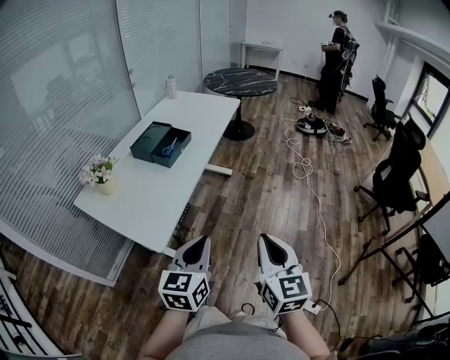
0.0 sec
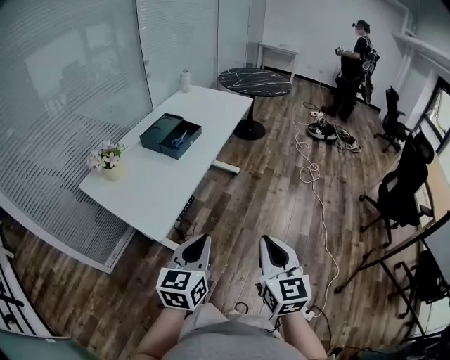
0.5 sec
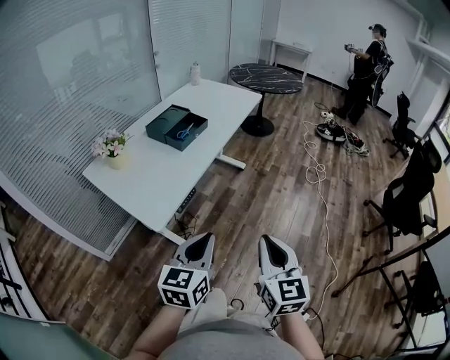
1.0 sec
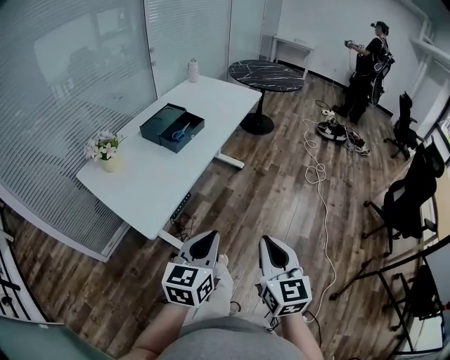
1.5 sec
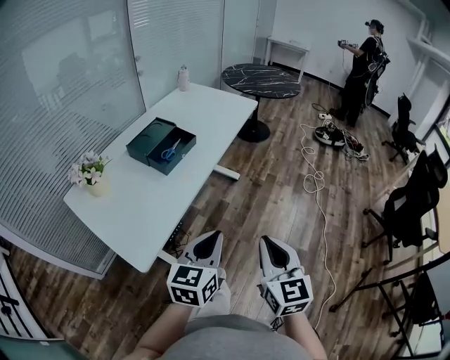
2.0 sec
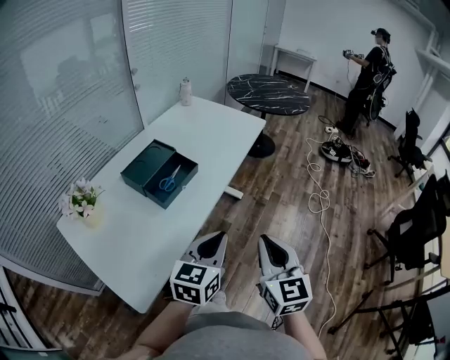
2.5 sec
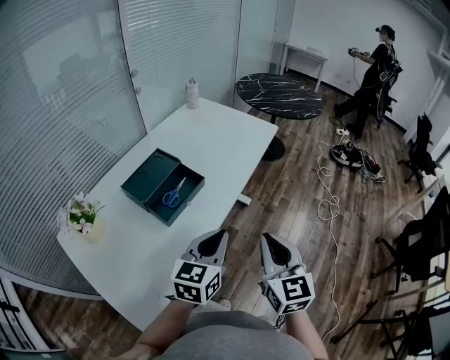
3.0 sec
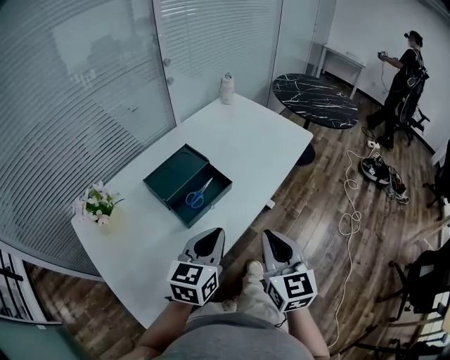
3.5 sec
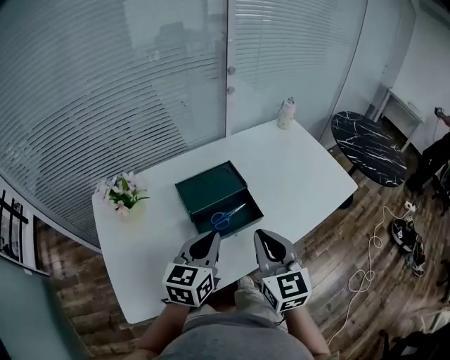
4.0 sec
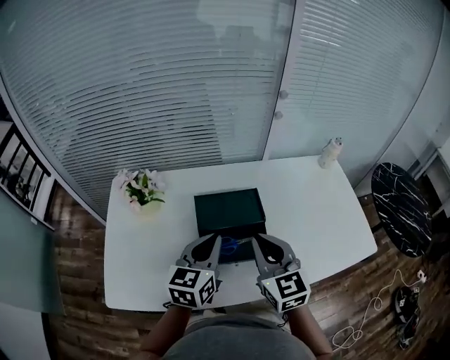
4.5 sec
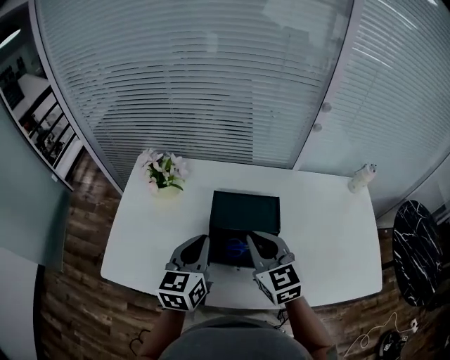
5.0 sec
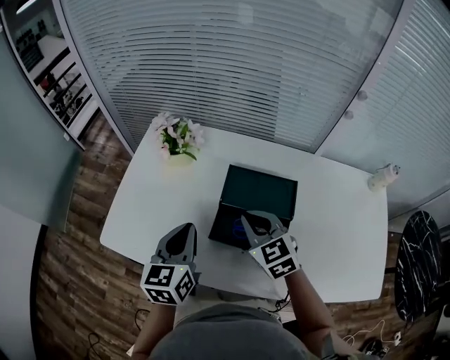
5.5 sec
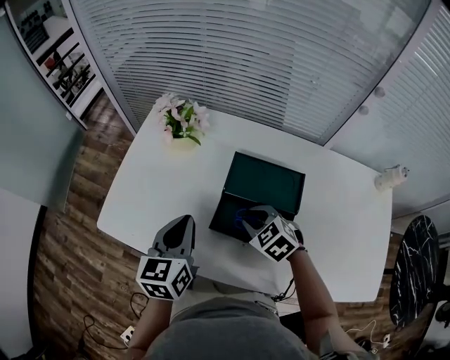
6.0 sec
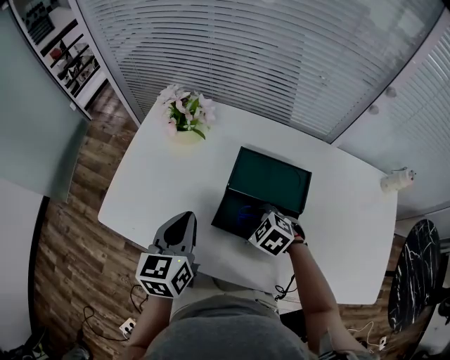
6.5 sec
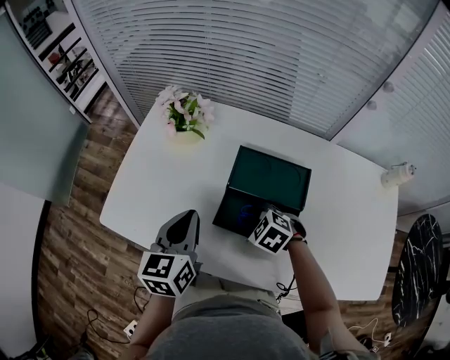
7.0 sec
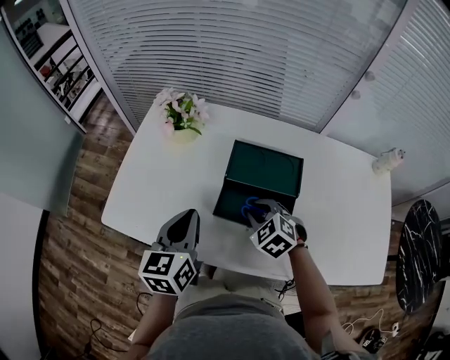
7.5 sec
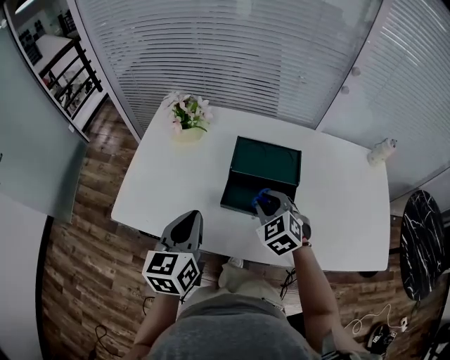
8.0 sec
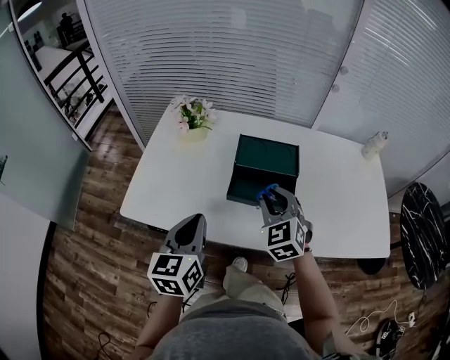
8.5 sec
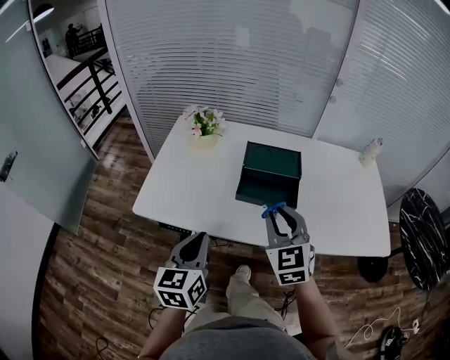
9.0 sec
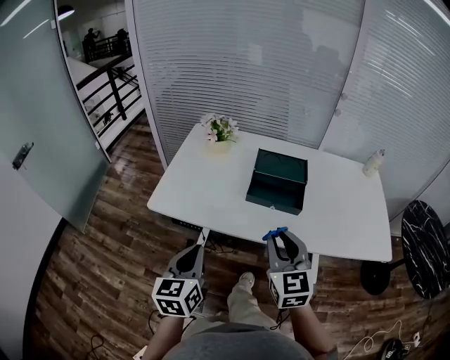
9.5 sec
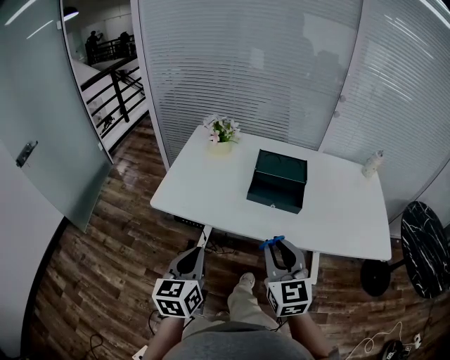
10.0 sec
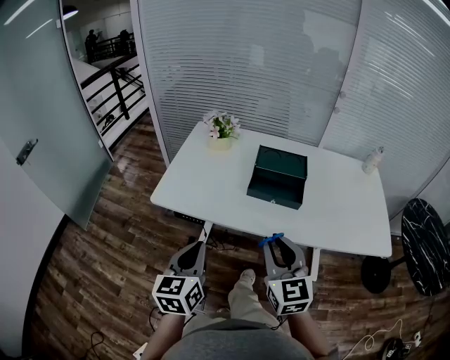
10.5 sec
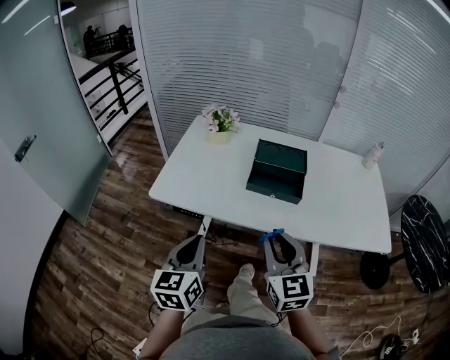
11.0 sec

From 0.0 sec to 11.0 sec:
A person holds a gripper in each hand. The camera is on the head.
From 0.0 sec to 2.0 sec: The right gripper heads forward, covering approximately 15 cm; the left gripper goes about 15 cm forward and to the right.
From 2.0 sec to 3.5 sec: Both grippers travel together forward, some 35 cm.
From 3.5 sec to 5.5 sec: The right gripper changes place by roughly 35 cm, and rotates roughly 80 degrees, while the left gripper changes place by some 15 cm, and swivels roughly 70 degrees.
From 5.5 sec to 7.5 sec: The right gripper heads downward, covering some 10 cm, and swivels some 30 degrees.
From 7.5 sec to 9.0 sec: The left gripper goes roughly 20 cm backward, while the right gripper travels upward and backward by approximately 25 cm, and tips its fingers upward by roughly 40 degrees.
From 9.0 sec to 11.0 sec: The grippers both shift backward by approximately 15 cm.

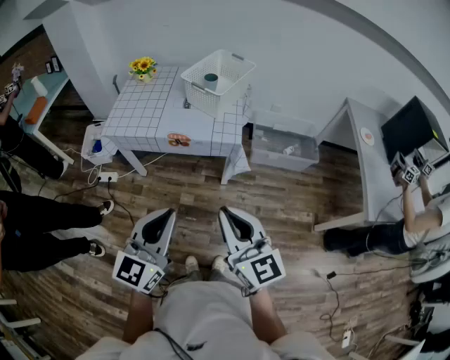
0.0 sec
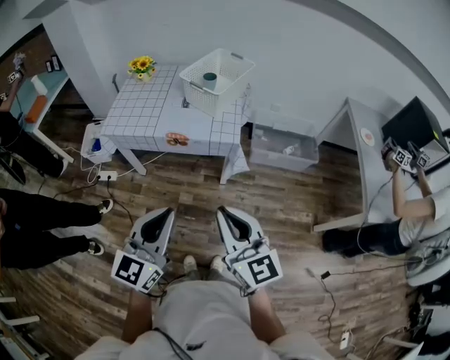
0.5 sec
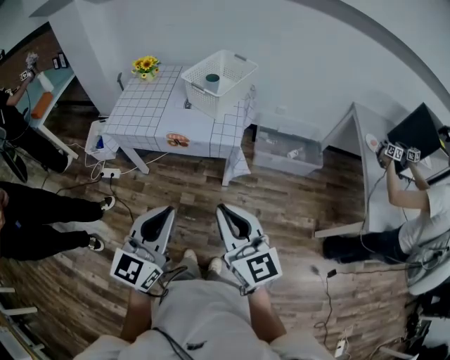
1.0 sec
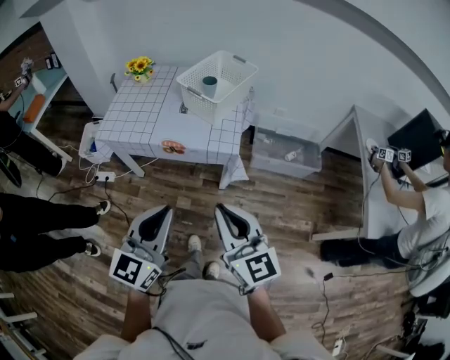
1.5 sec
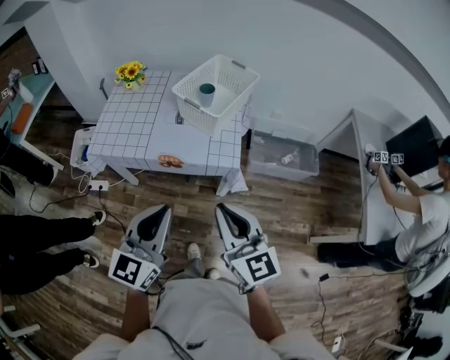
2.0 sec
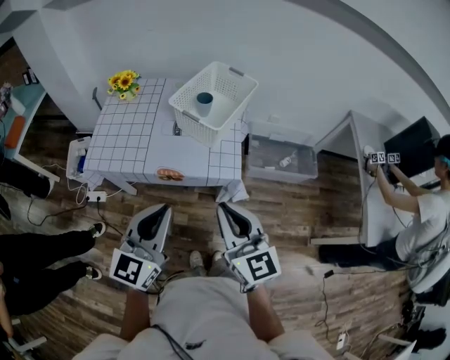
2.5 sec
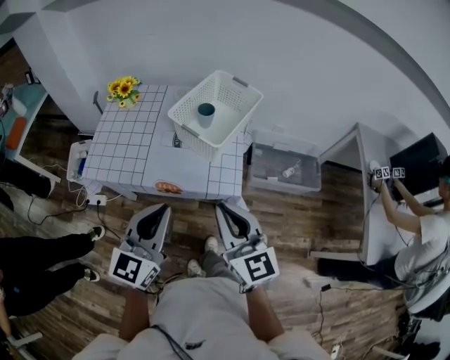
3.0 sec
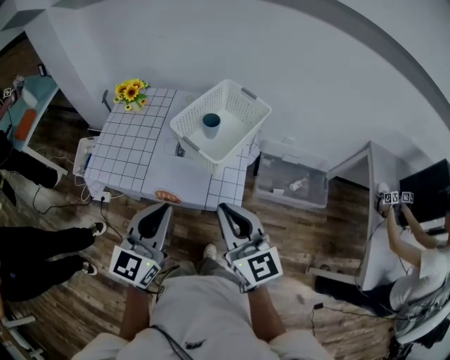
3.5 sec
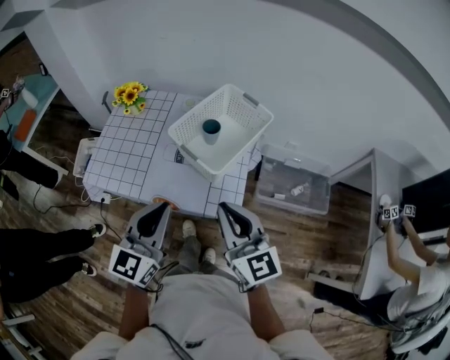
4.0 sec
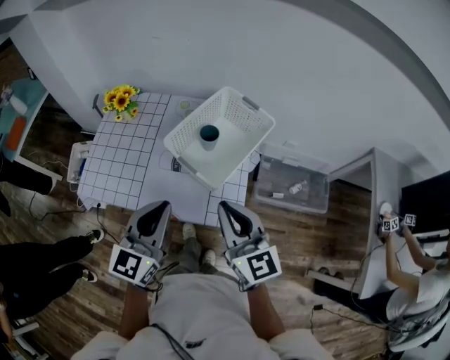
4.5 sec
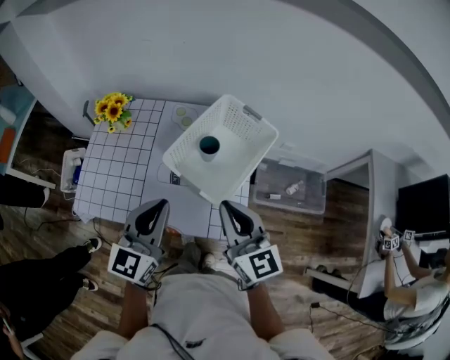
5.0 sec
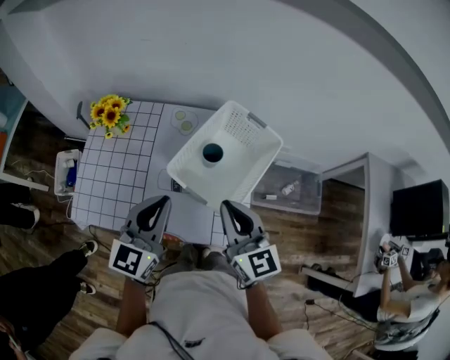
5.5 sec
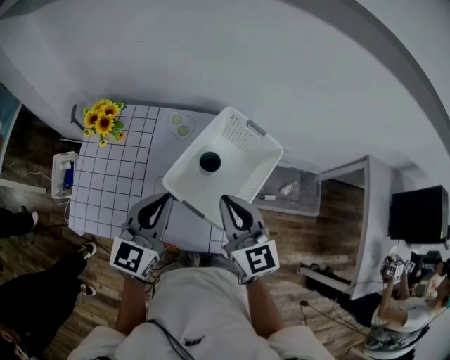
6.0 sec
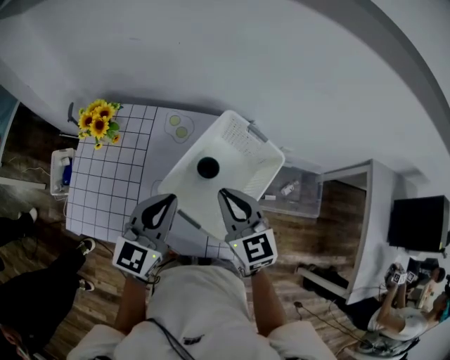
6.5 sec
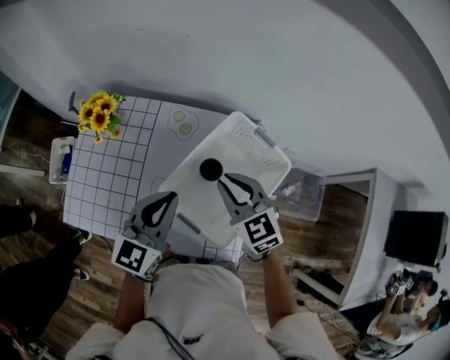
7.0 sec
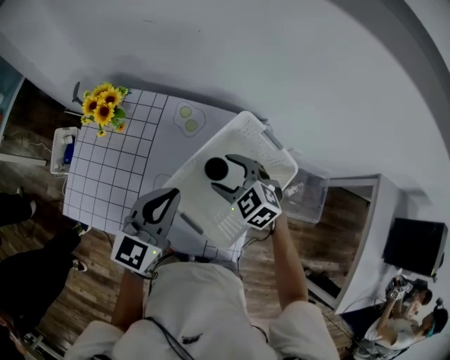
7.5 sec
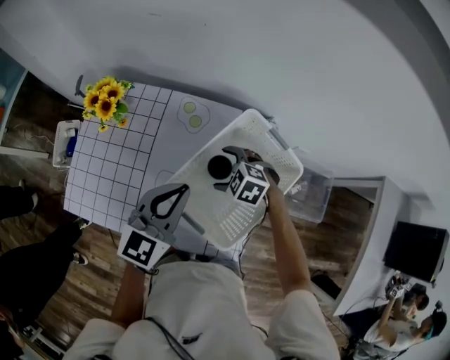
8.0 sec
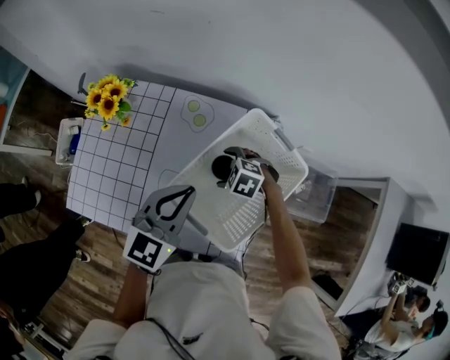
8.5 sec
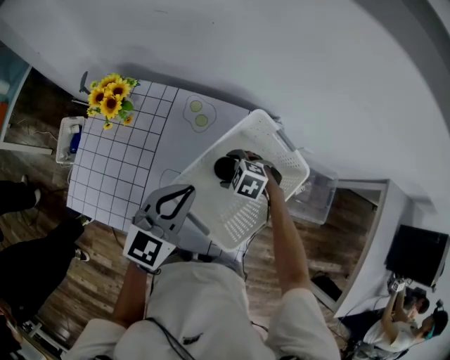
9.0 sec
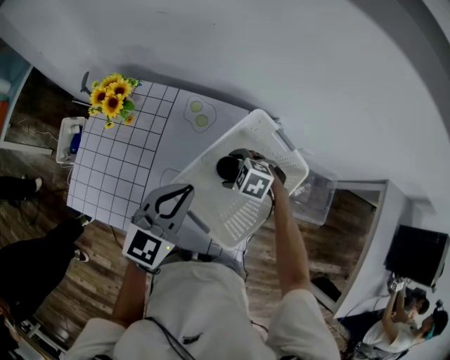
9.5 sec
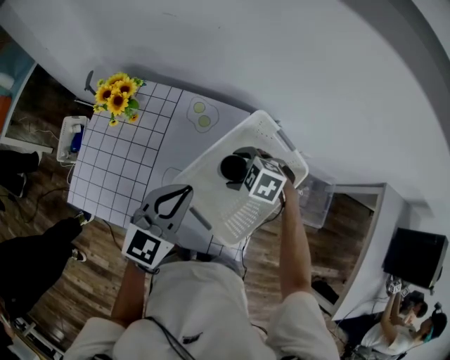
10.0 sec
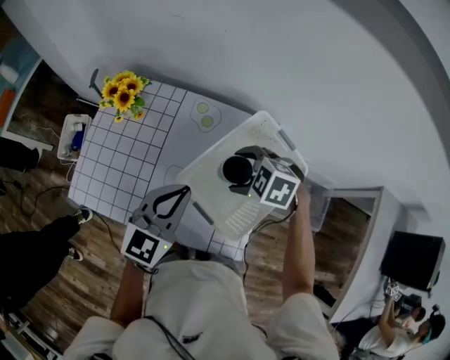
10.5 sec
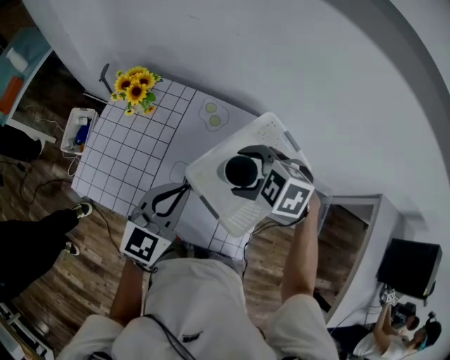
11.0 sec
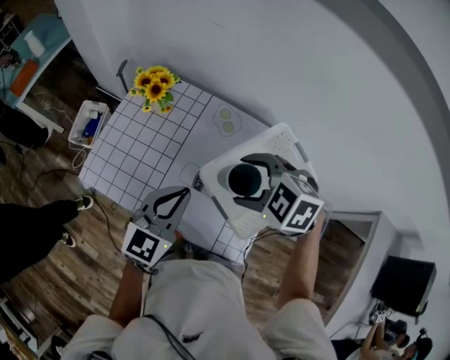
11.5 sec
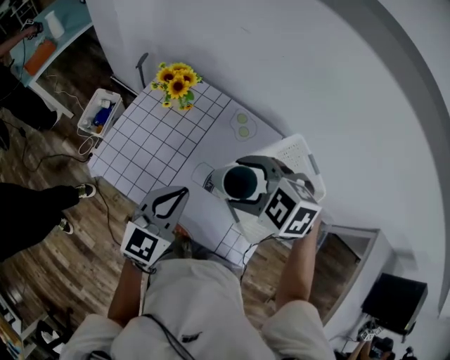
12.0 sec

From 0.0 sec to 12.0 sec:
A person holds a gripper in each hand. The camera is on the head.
From 0.0 sec to 2.0 sec: Both grippers travel together forward, approximately 20 cm.
From 2.0 sec to 4.0 sec: Both grippers travel together forward, about 25 cm.
From 4.0 sec to 6.0 sec: Both grippers move forward, about 25 cm.
From 6.0 sec to 8.0 sec: The left gripper moves forward, roughly 10 cm; the right gripper goes roughly 25 cm downward and forward, points its fingers about 60 degrees further downward, and opens its fingers.
From 8.0 sec to 10.0 sec: The grippers move only a little.
From 10.0 sec to 12.0 sec: The right gripper heads upward and to the left, covering about 25 cm, and changes its angle by some 30 degrees; the left gripper is displaced to the left by about 15 cm.

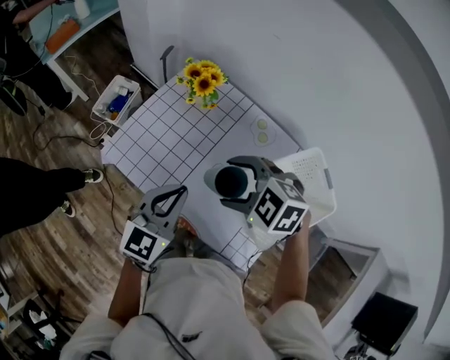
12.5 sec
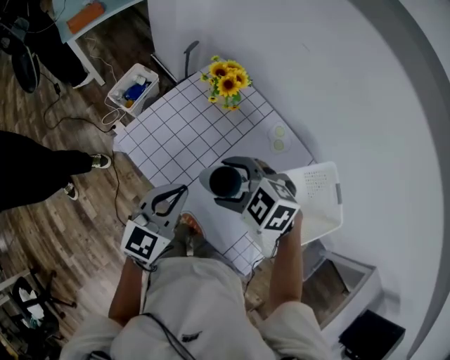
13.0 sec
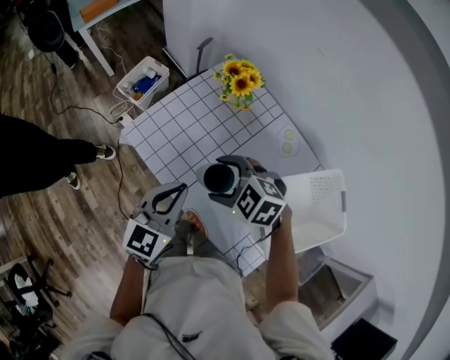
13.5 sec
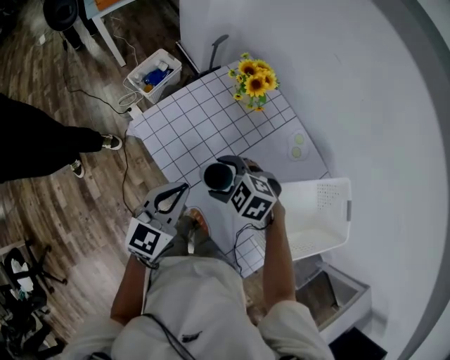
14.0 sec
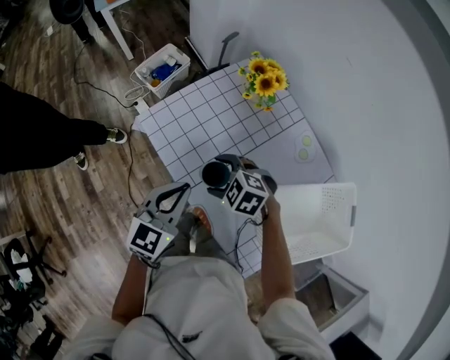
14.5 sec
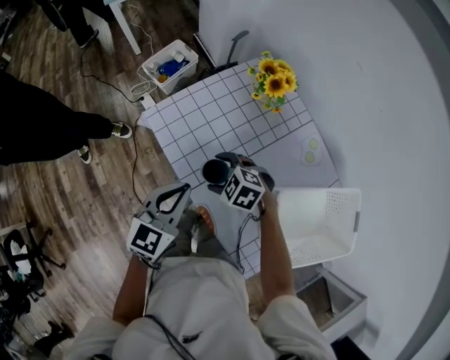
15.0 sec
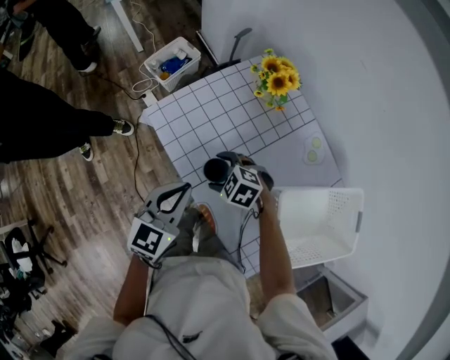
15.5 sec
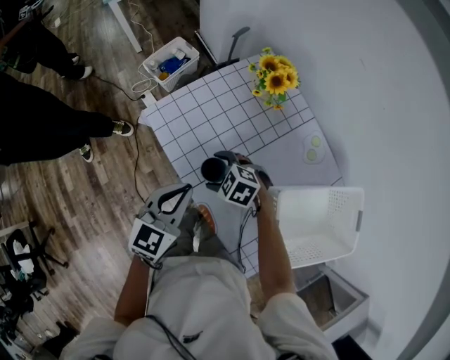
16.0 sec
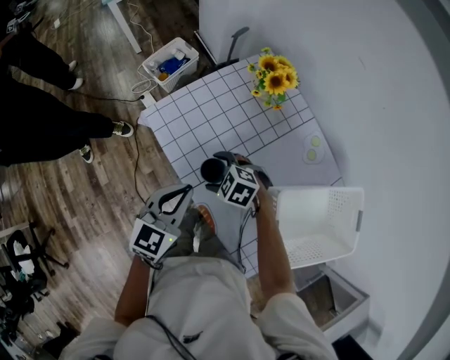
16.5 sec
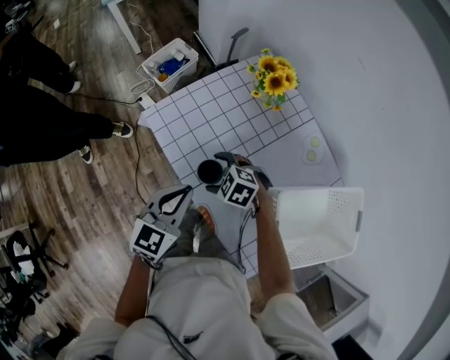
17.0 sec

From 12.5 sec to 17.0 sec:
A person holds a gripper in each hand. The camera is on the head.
From 12.5 sec to 14.5 sec: The right gripper goes approximately 20 cm downward and to the left. The left gripper heads to the left and downward, covering about 10 cm.
From 14.5 sec to 17.0 sec: The right gripper shifts approximately 5 cm downward.
